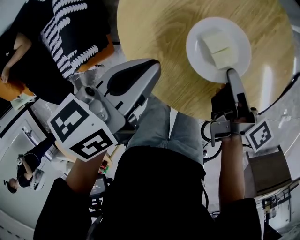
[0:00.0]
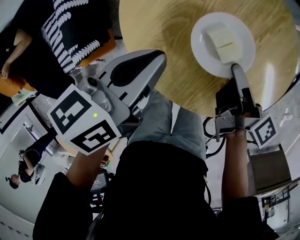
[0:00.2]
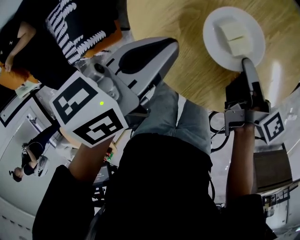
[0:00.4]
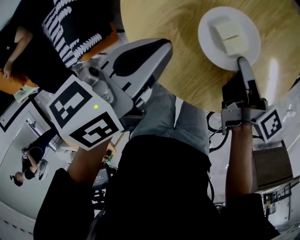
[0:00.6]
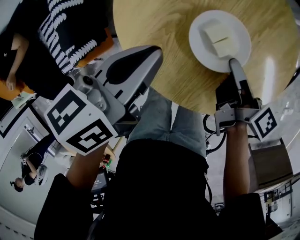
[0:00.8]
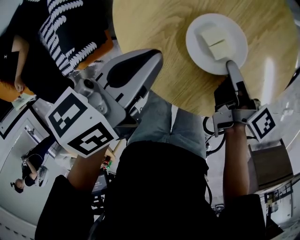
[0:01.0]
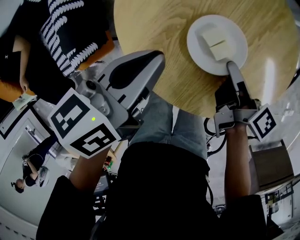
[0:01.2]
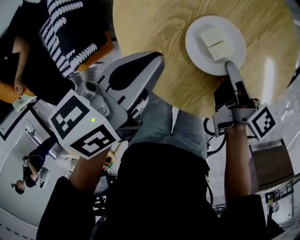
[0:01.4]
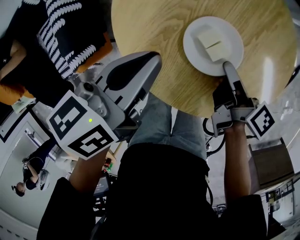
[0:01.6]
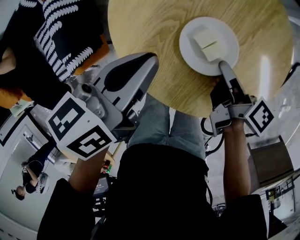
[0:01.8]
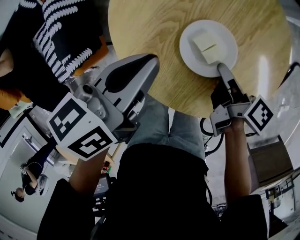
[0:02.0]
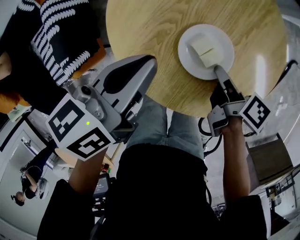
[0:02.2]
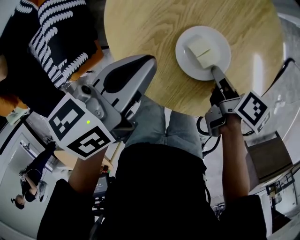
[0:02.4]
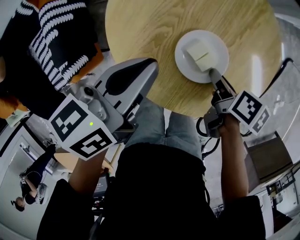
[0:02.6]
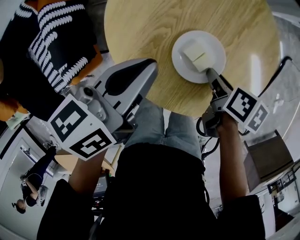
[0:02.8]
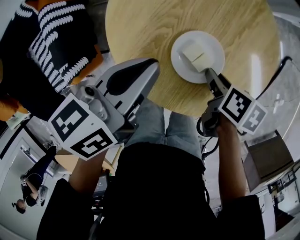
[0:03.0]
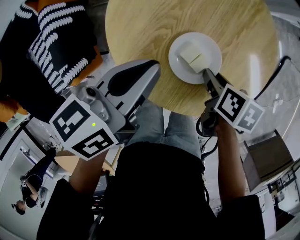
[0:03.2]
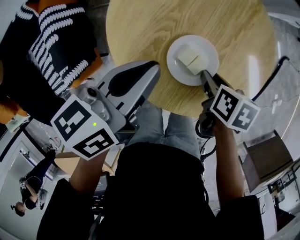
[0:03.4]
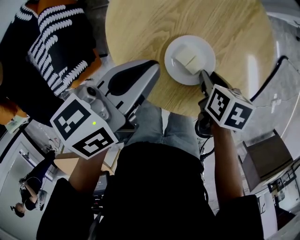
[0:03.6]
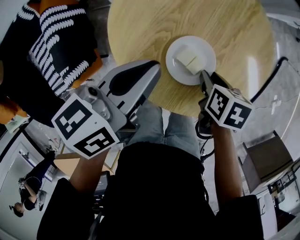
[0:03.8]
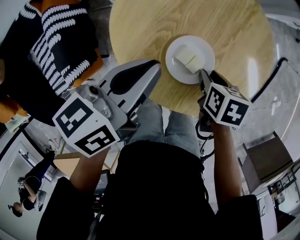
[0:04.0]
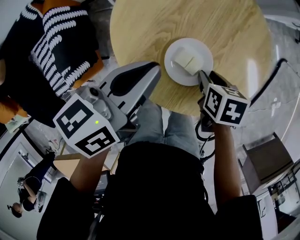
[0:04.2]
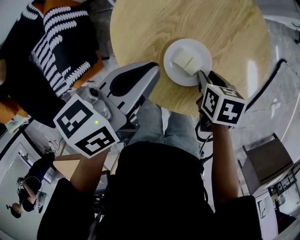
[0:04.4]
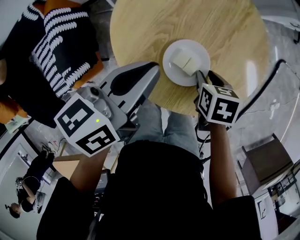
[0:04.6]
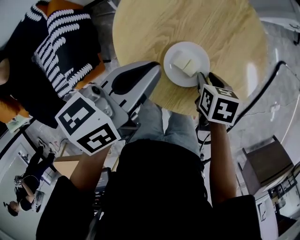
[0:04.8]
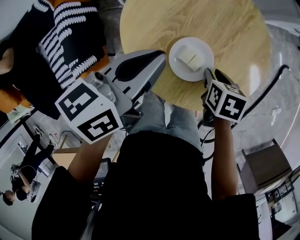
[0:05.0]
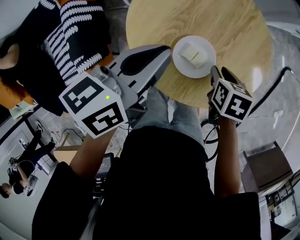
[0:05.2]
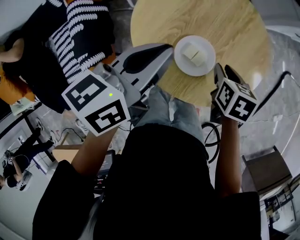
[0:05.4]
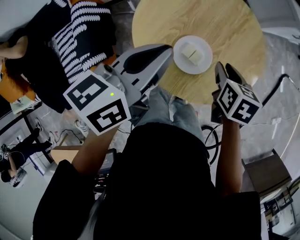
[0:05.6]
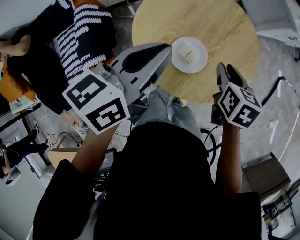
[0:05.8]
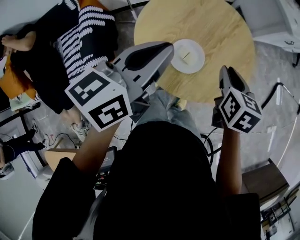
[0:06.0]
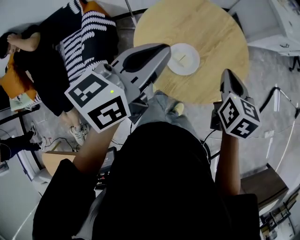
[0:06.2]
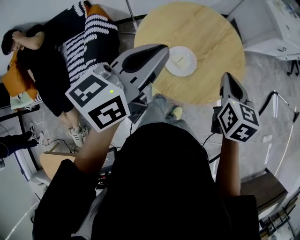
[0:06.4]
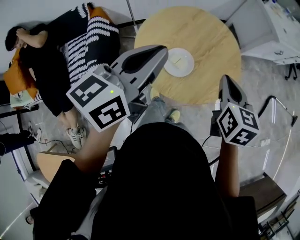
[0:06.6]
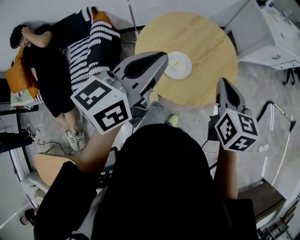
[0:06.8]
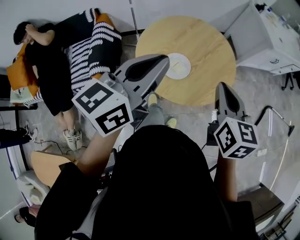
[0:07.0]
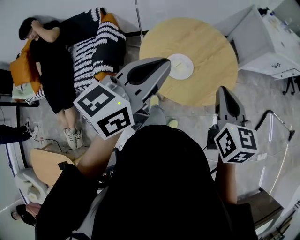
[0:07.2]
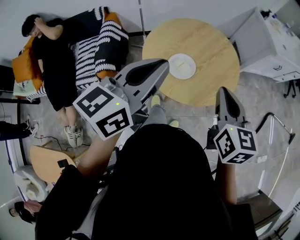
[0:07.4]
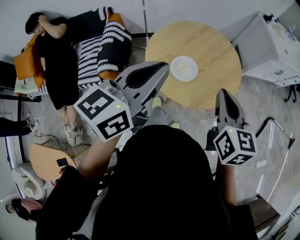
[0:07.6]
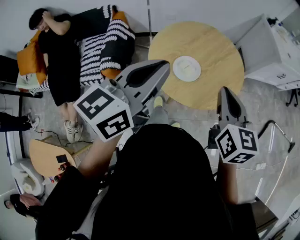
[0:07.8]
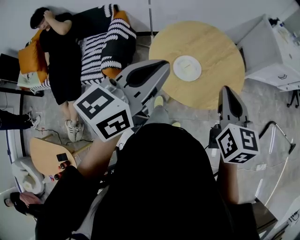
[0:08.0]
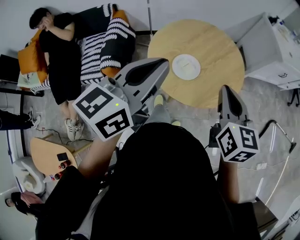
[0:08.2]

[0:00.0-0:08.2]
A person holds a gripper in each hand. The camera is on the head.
0:00.0 to 0:01.6: The grippers move only a little.
0:01.6 to 0:03.2: The right gripper tilts its fingers some 30 degrees downward, and opens up.
0:03.2 to 0:05.0: The left gripper is displaced upward by some 5 cm.
0:05.0 to 0:06.6: The left gripper is displaced upward and backward by some 20 cm, and swivels about 30 degrees. Meanwhile the right gripper shifts about 25 cm upward, angles its fingers upward, by roughly 40 degrees, and closes up.
0:06.6 to 0:08.2: The right gripper travels backward and upward by roughly 10 cm. Meanwhile the left gripper is displaced backward by about 10 cm.

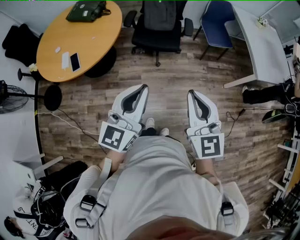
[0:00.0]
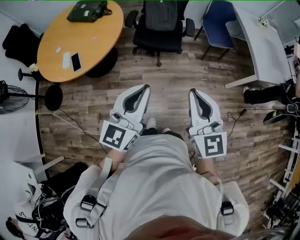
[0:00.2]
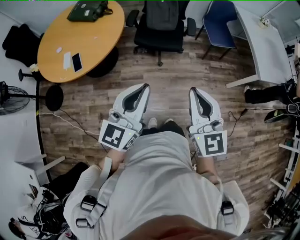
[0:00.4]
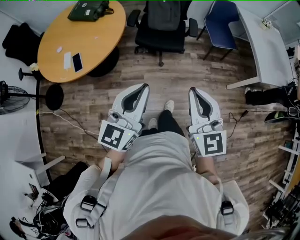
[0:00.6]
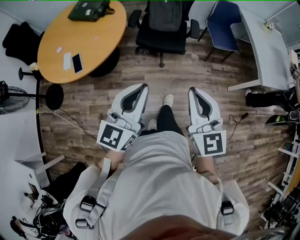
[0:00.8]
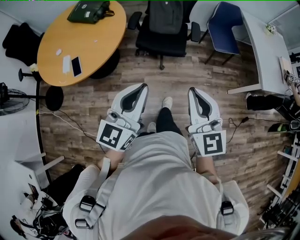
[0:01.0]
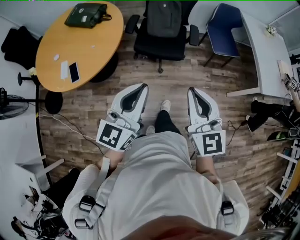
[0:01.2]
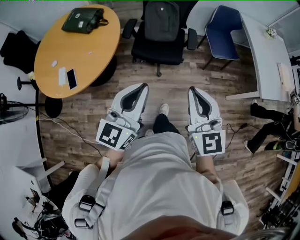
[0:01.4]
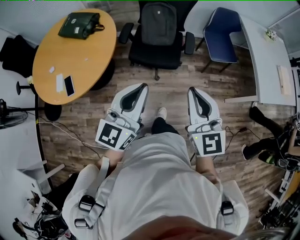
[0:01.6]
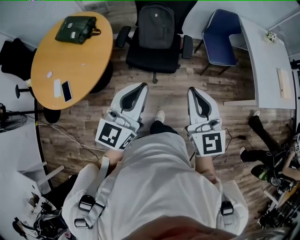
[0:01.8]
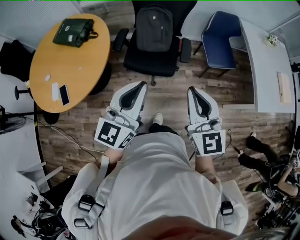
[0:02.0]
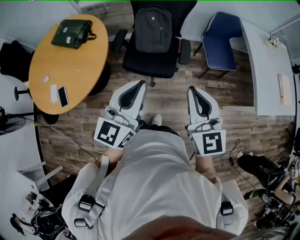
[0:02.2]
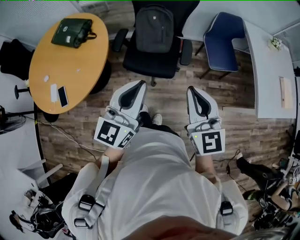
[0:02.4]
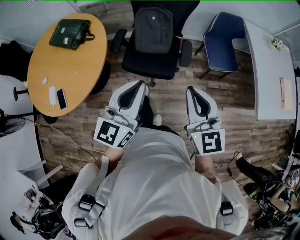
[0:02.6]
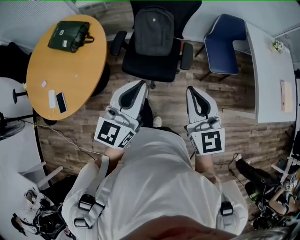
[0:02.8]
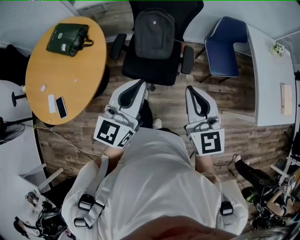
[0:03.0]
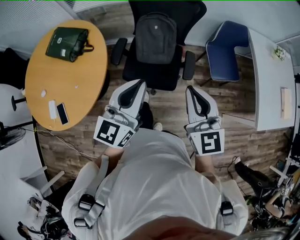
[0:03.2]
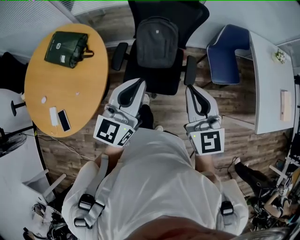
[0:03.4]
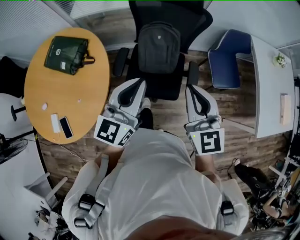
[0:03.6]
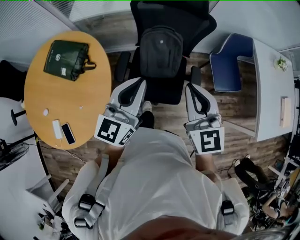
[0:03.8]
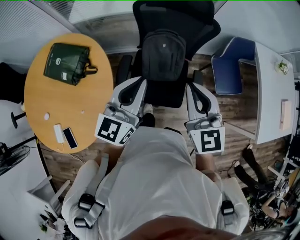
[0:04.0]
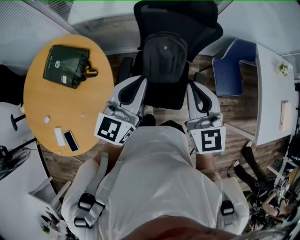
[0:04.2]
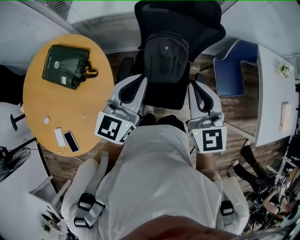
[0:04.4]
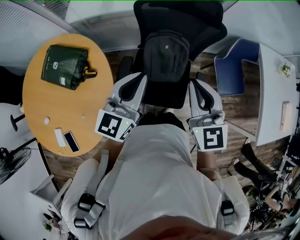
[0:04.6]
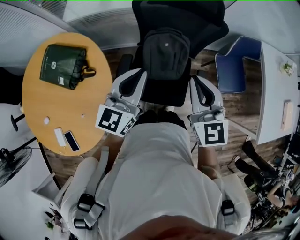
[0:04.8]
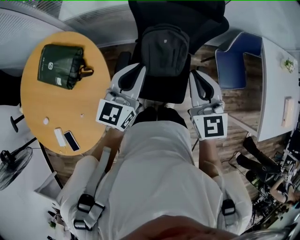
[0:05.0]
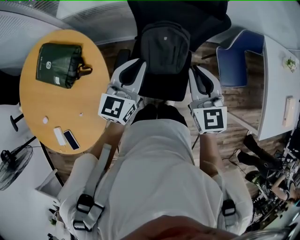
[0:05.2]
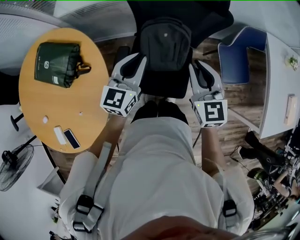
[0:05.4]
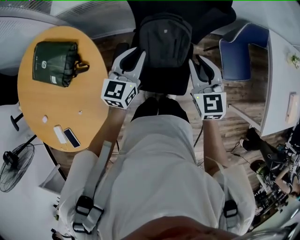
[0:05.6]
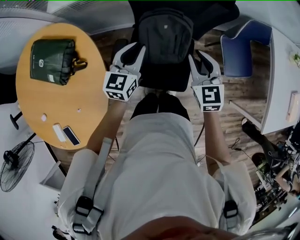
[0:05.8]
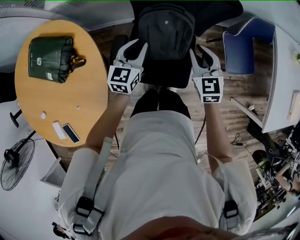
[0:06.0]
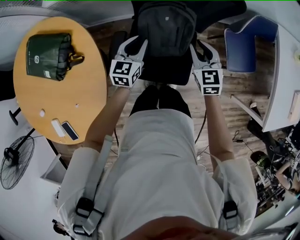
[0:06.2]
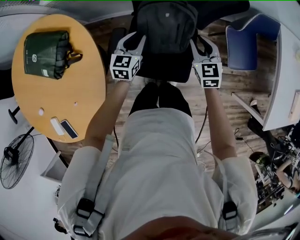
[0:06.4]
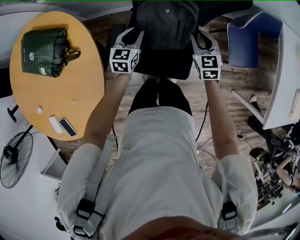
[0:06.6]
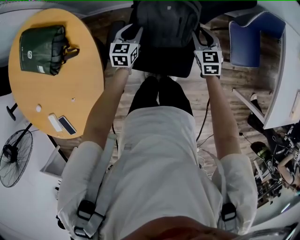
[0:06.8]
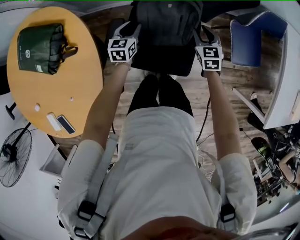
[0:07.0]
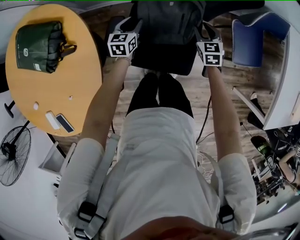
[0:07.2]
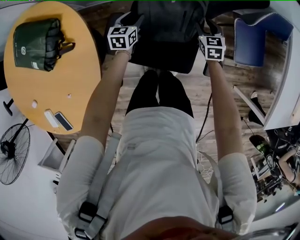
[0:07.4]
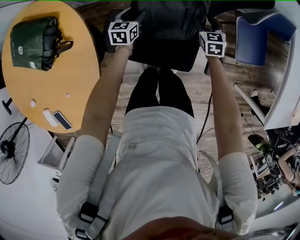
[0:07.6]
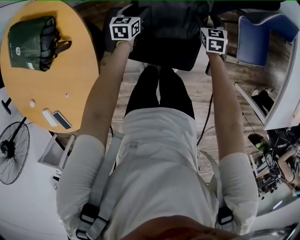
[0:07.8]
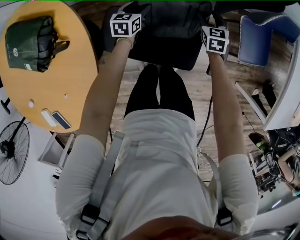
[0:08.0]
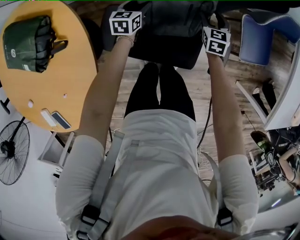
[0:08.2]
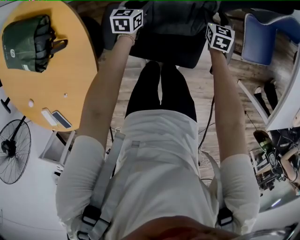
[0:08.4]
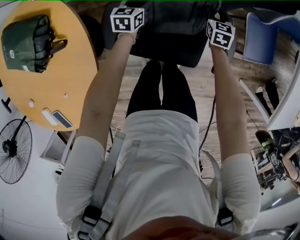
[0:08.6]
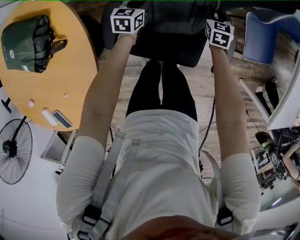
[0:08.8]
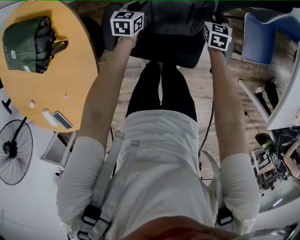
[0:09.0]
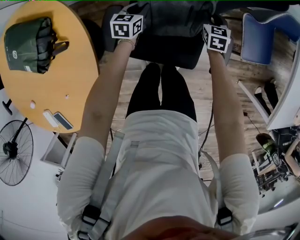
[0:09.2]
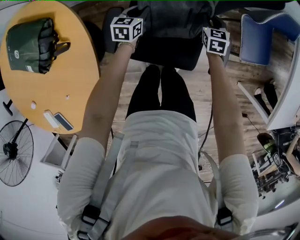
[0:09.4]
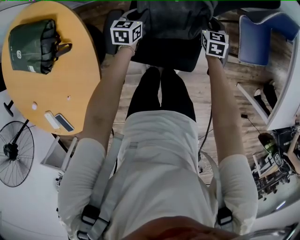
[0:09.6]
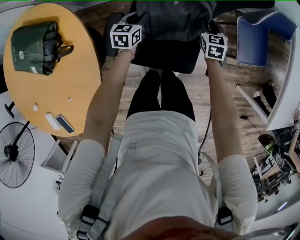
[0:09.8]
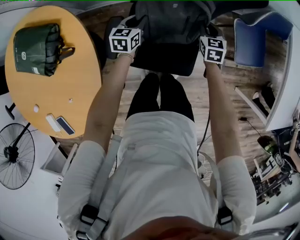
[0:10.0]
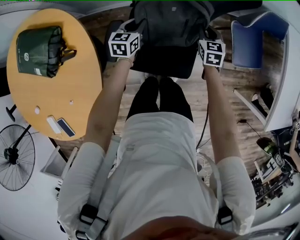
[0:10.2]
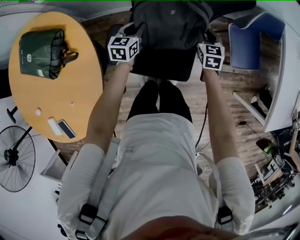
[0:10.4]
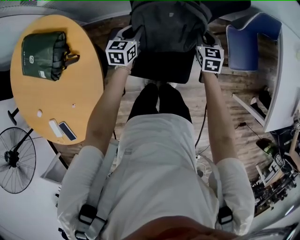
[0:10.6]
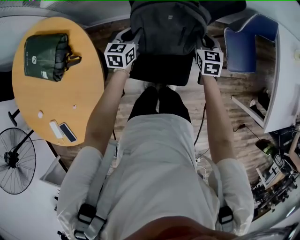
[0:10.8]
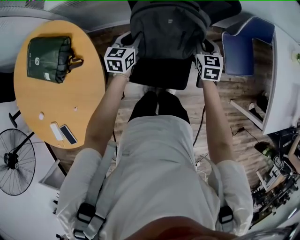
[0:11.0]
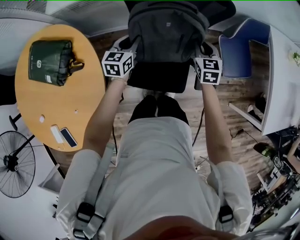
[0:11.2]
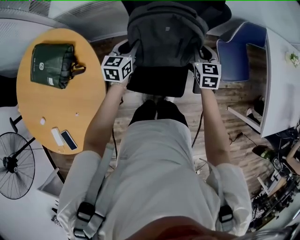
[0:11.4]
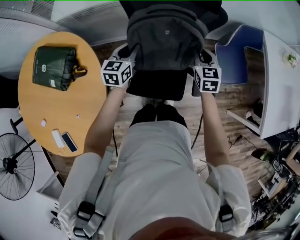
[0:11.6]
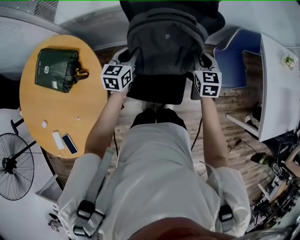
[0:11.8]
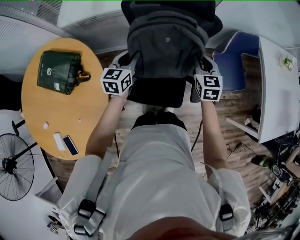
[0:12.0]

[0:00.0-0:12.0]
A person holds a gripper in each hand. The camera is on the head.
0:00.0 to 0:01.6: Both grippers move forward, about 25 cm.
0:01.6 to 0:03.0: Both grippers travel together forward, about 25 cm.
0:03.0 to 0:04.4: Both grippers move forward and to the left, roughly 30 cm.
0:04.4 to 0:06.0: Both grippers move downward and forward, about 30 cm.
0:06.0 to 0:07.6: The two grippers go about 25 cm downward. The right gripper opens up. Meanwhile the left gripper opens.
0:07.6 to 0:09.0: The left gripper closes. Meanwhile the right gripper closes its fingers.
0:09.0 to 0:10.4: The grippers both shift upward by roughly 10 cm.
0:10.4 to 0:12.0: The grippers both shift upward by some 20 cm.

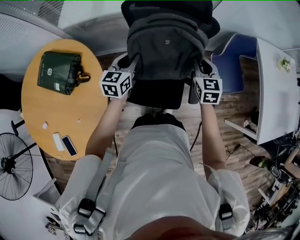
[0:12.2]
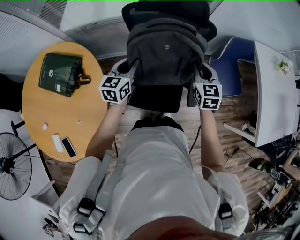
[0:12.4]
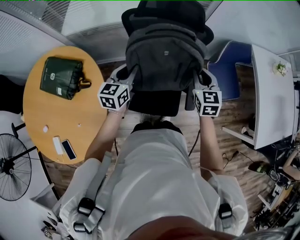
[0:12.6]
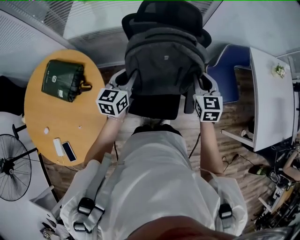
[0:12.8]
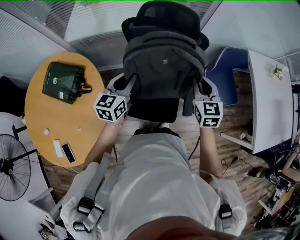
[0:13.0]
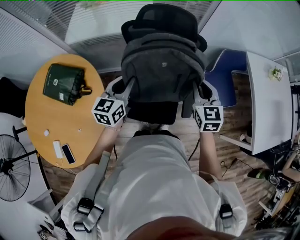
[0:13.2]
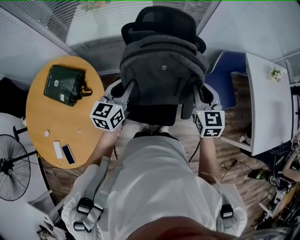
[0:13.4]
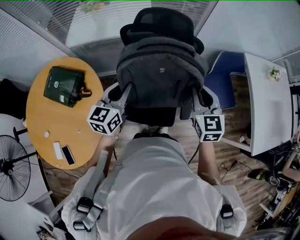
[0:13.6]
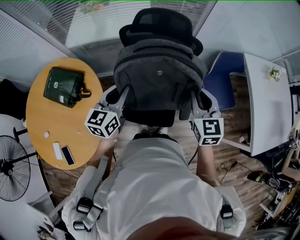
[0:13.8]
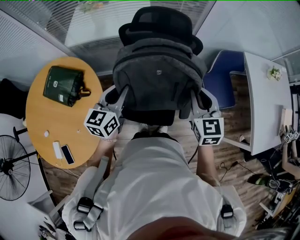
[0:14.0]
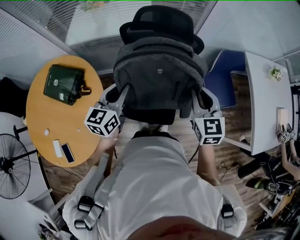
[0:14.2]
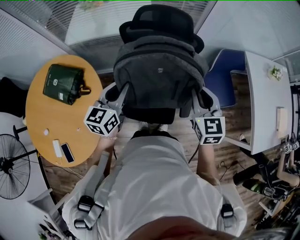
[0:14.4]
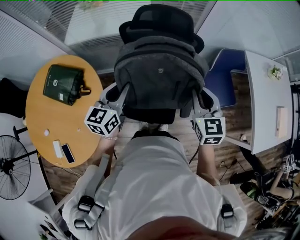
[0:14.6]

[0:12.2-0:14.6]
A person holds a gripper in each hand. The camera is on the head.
0:12.2 to 0:13.4: The grippers both shift upward and backward by roughly 15 cm.
0:13.4 to 0:14.6: The grippers stay close to where they were, moving slightly.

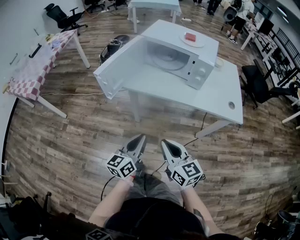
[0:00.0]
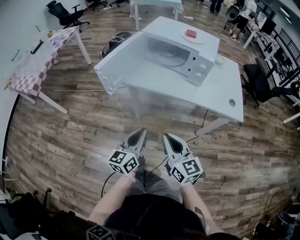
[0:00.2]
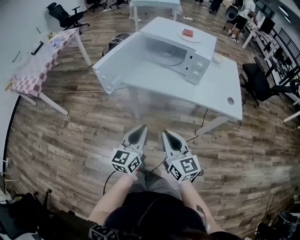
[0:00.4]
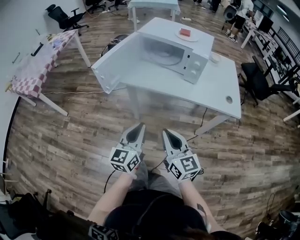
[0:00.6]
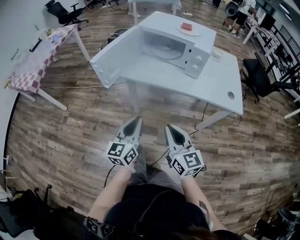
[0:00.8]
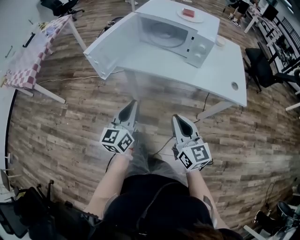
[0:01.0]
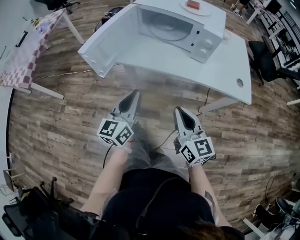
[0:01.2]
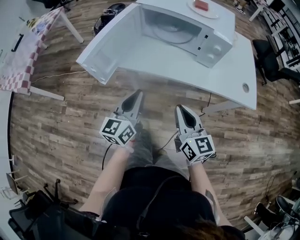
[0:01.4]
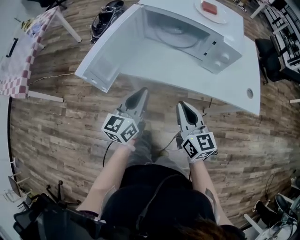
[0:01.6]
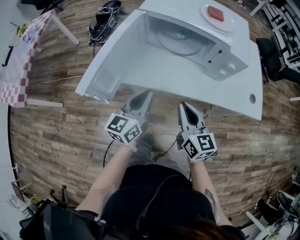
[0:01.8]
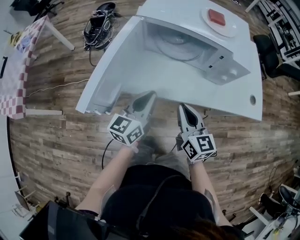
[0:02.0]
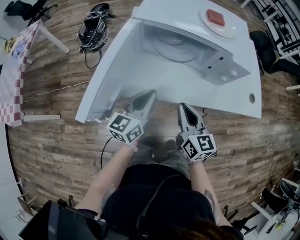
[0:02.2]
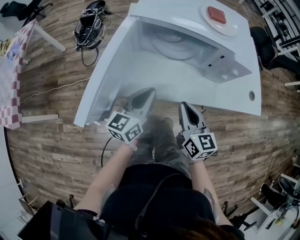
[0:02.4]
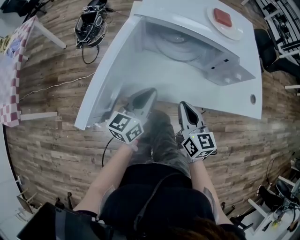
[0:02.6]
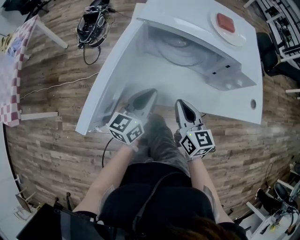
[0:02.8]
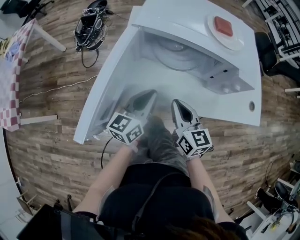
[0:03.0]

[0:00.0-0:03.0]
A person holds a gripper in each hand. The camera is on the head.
0:00.0 to 0:01.6: The left gripper changes place by roughly 20 cm.
0:01.6 to 0:03.0: The left gripper shifts by approximately 15 cm.
